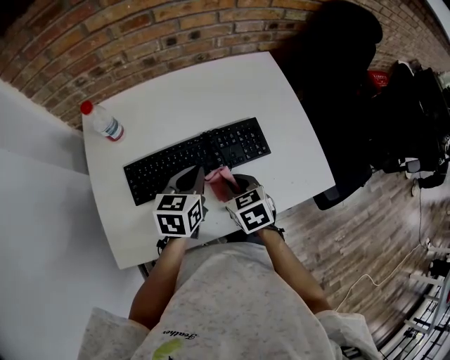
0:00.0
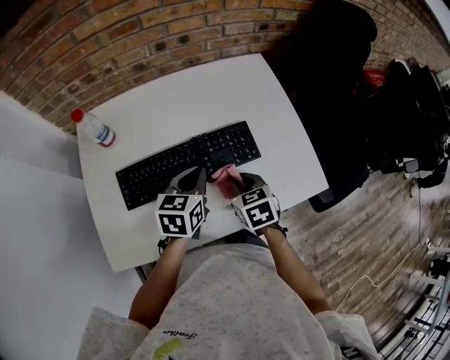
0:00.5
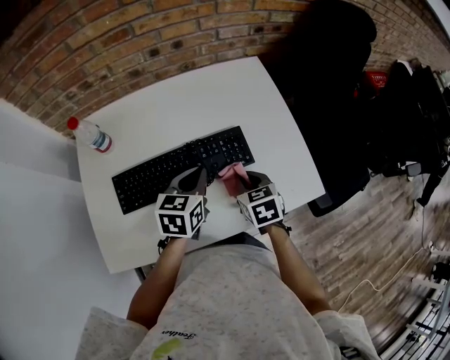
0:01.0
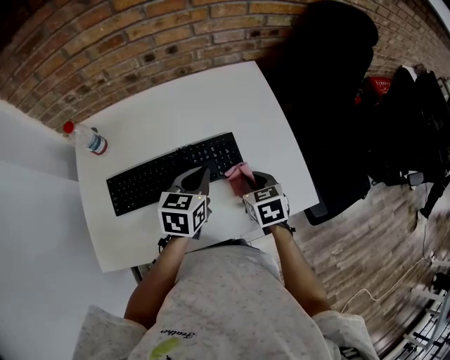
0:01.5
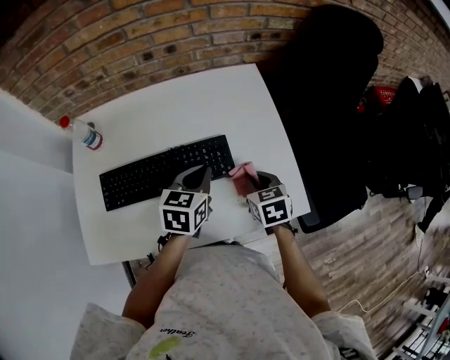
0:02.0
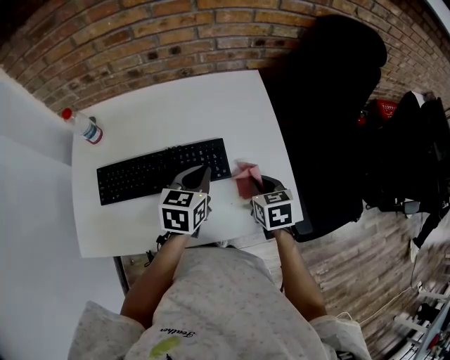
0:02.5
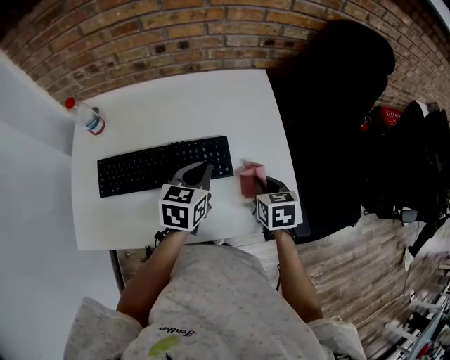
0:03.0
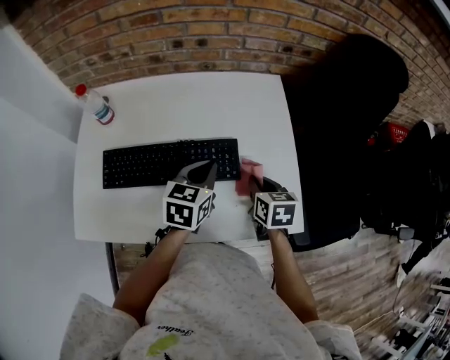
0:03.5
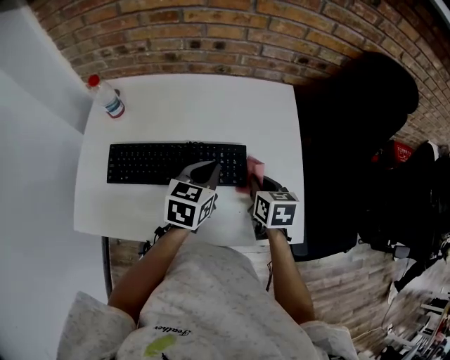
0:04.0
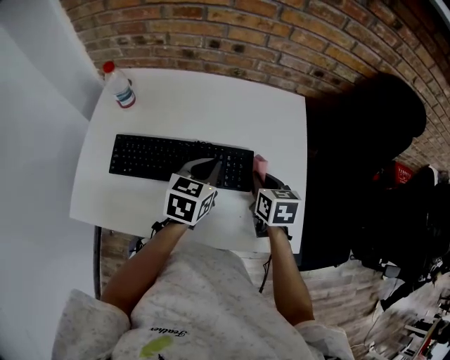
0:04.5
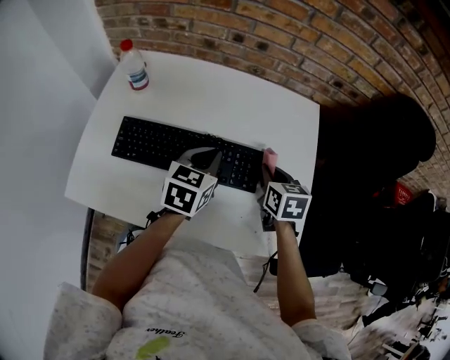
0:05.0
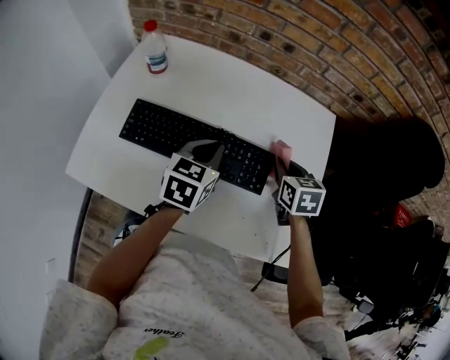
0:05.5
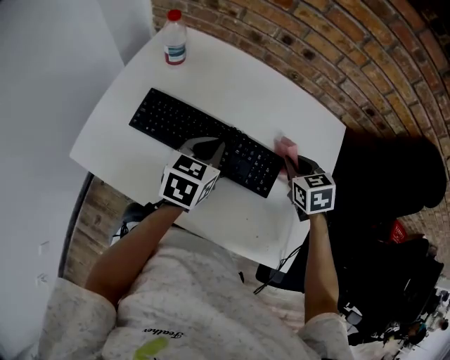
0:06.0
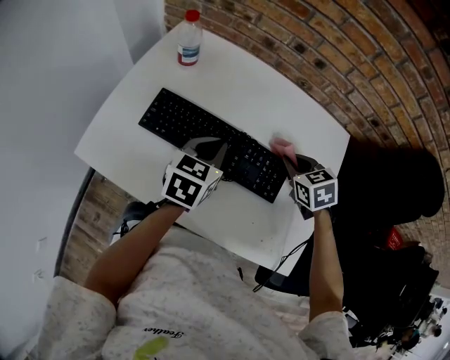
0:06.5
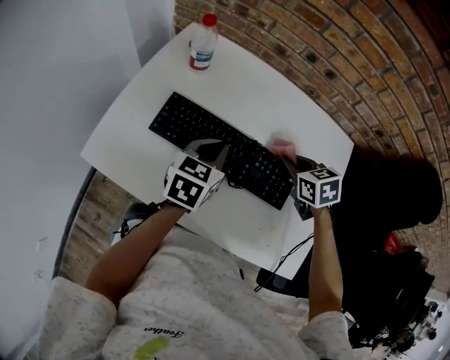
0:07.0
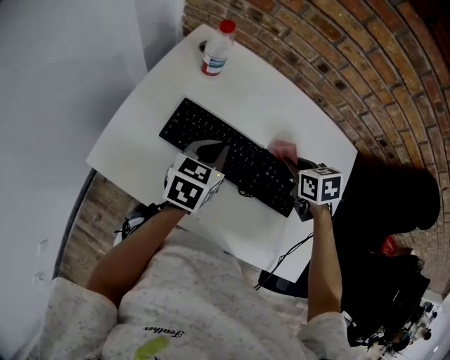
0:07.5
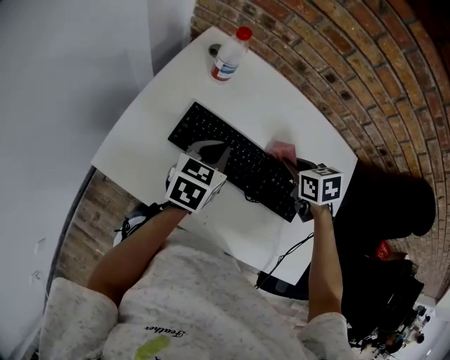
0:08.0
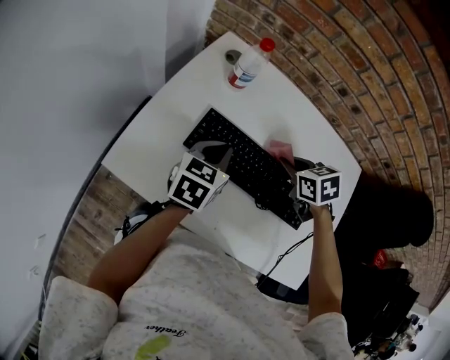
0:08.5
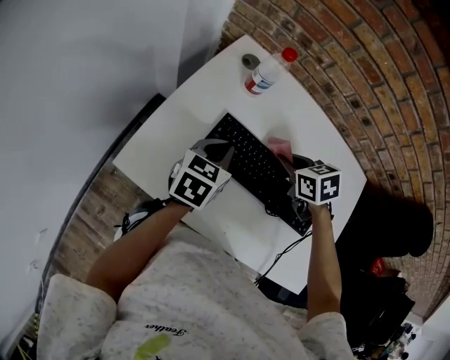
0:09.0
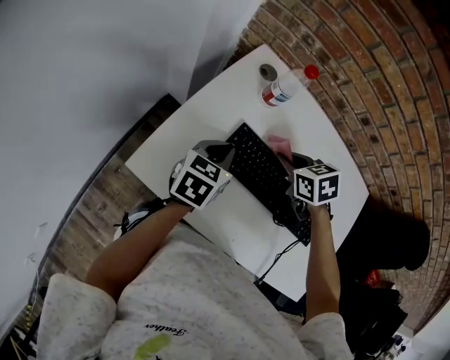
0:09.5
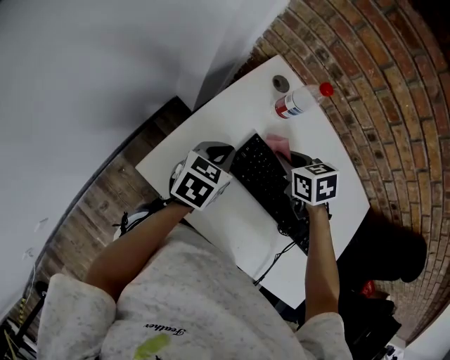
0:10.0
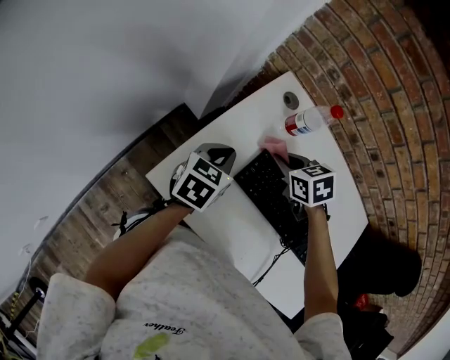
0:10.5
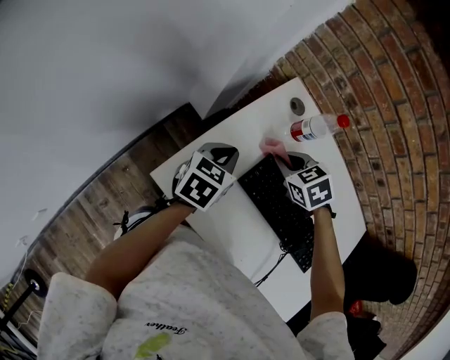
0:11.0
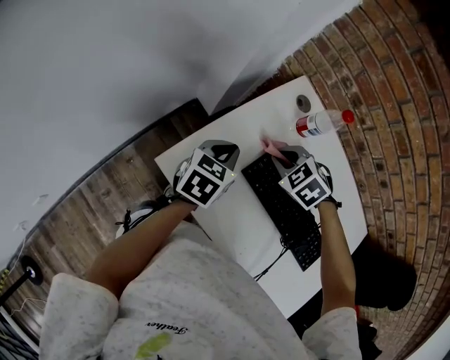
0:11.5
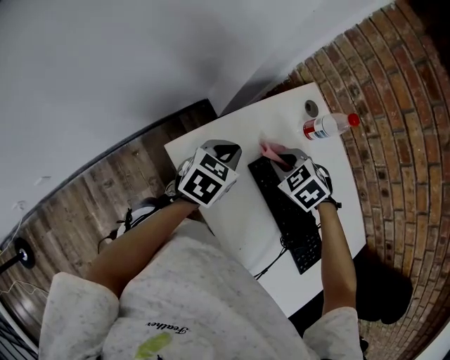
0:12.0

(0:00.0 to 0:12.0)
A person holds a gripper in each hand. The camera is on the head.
0:00.0 - 0:02.0: The grippers both shift to the right by approximately 15 cm.
0:02.0 - 0:04.0: The grippers stay close to where they were, moving slightly.
0:04.0 - 0:06.0: The right gripper heads forward, covering roughly 10 cm, and turns by about 40 degrees, while the left gripper shifts some 10 cm to the left.
0:06.0 - 0:08.0: The grippers both shift to the left by approximately 15 cm.
0:08.0 - 0:10.0: Both grippers move to the left, about 20 cm.
0:10.0 - 0:12.0: Both grippers move to the left, approximately 10 cm. The right gripper rotates around the line of its fingers by some 50 degrees, counterclockwise from behind.

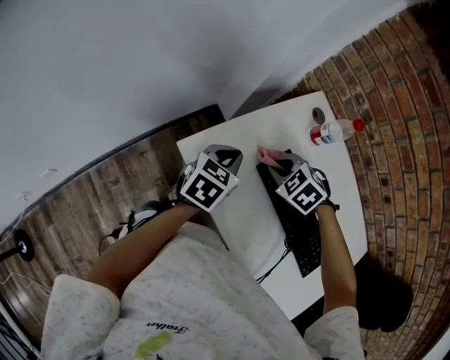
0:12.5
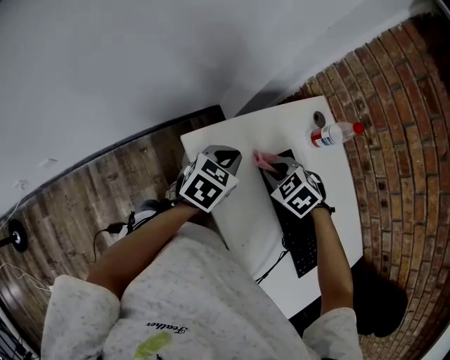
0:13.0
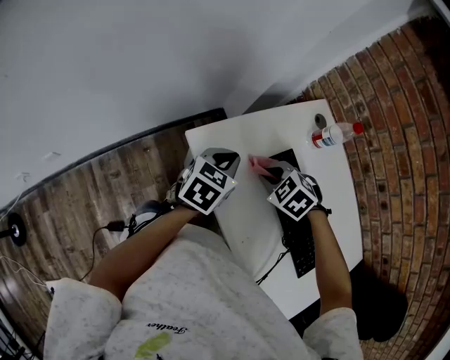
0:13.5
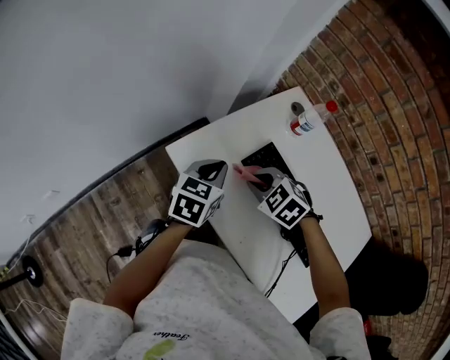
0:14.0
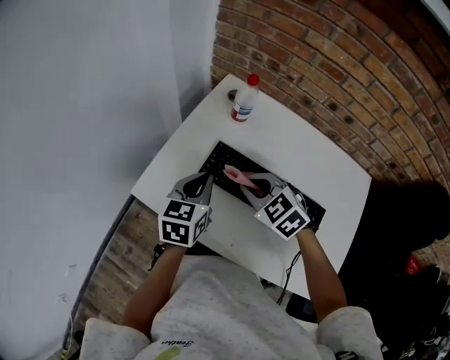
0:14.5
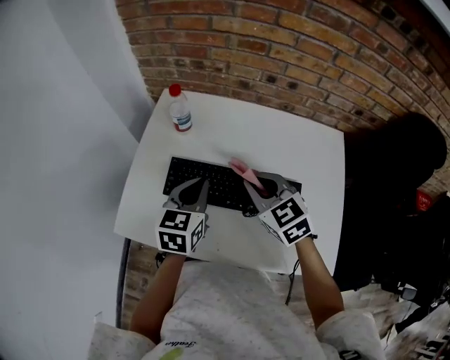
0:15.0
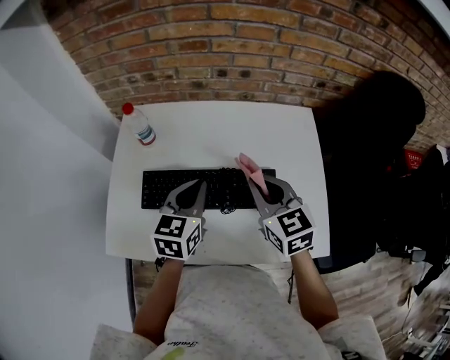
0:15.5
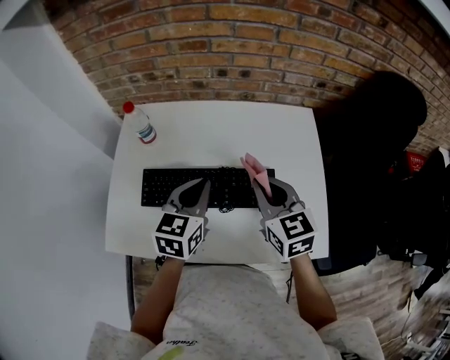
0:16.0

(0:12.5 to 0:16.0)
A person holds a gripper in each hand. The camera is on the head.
0:12.5 - 0:14.5: The left gripper goes approximately 10 cm to the right, upward and backward, while the right gripper heads backward, upward and to the right, covering approximately 15 cm, and turns by approximately 40 degrees.
0:14.5 - 0:16.0: The right gripper moves about 25 cm, and turns by about 60 degrees, while the left gripper ends up some 20 cm from where it was, and rotates some 30 degrees.

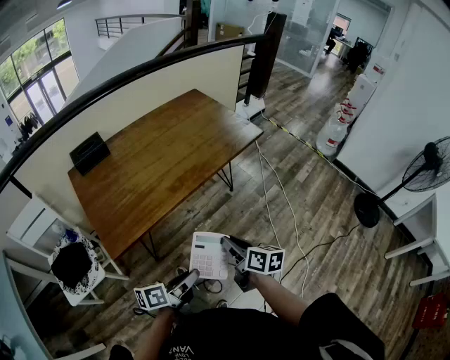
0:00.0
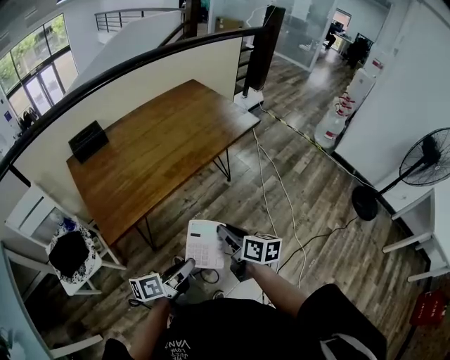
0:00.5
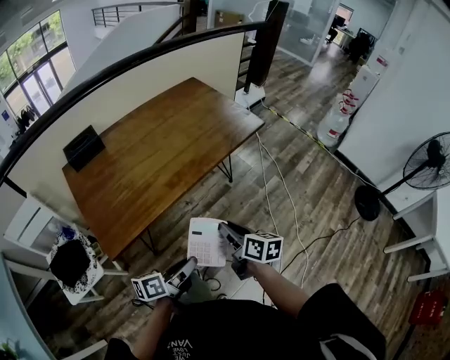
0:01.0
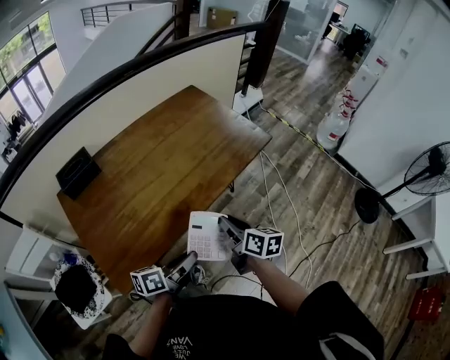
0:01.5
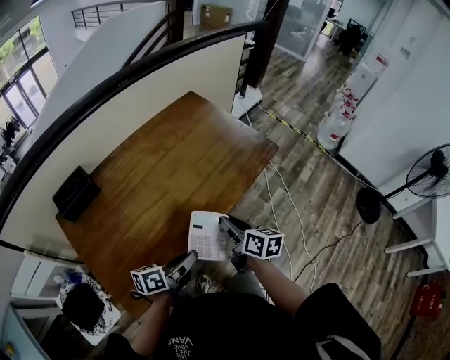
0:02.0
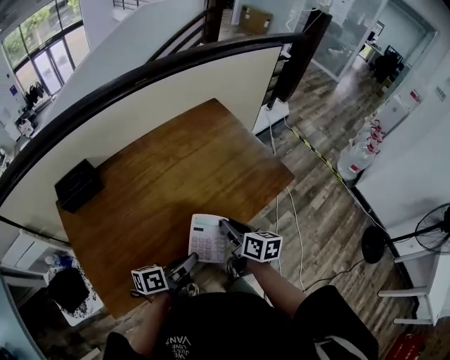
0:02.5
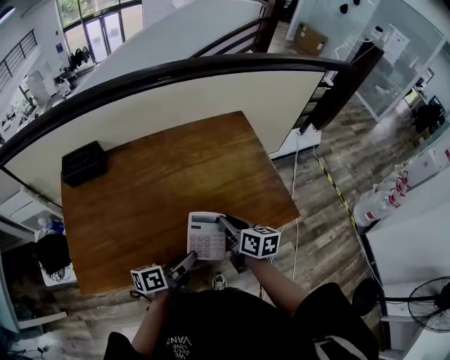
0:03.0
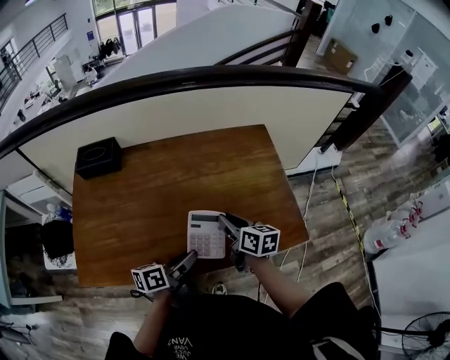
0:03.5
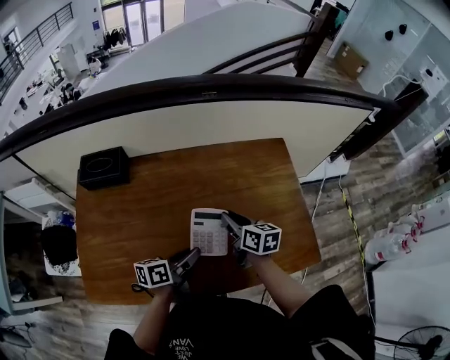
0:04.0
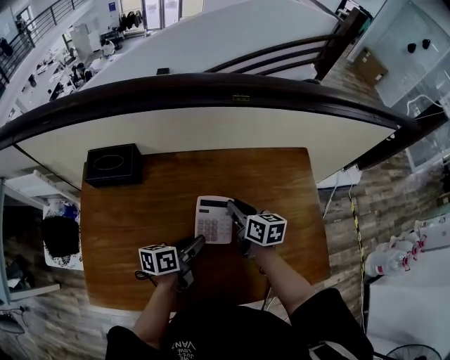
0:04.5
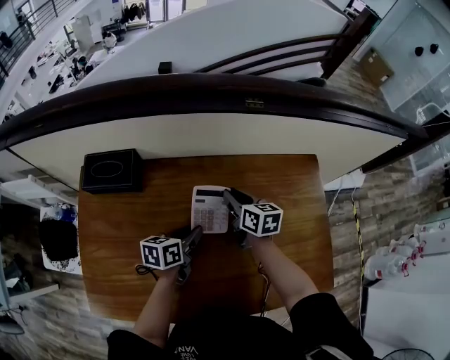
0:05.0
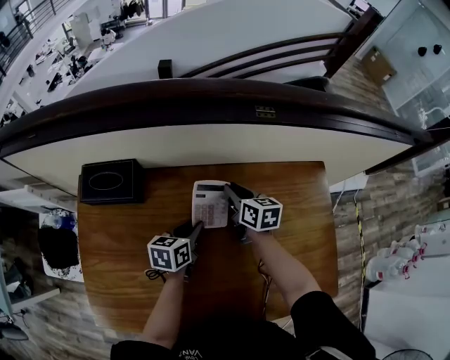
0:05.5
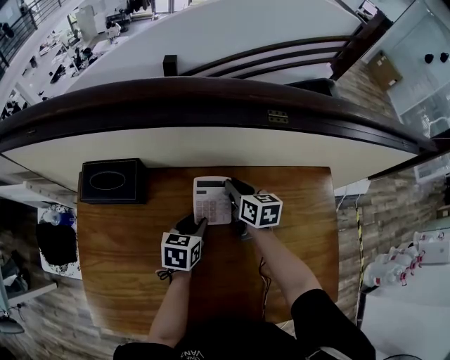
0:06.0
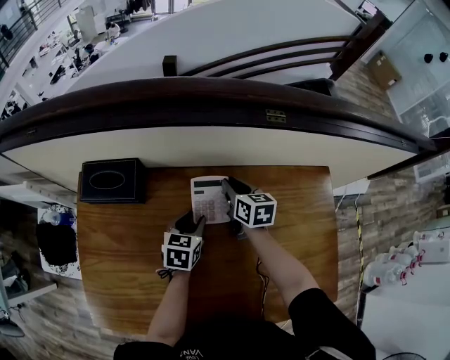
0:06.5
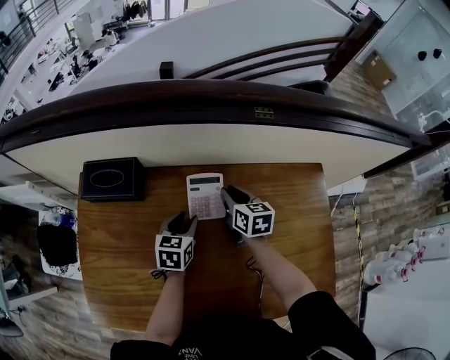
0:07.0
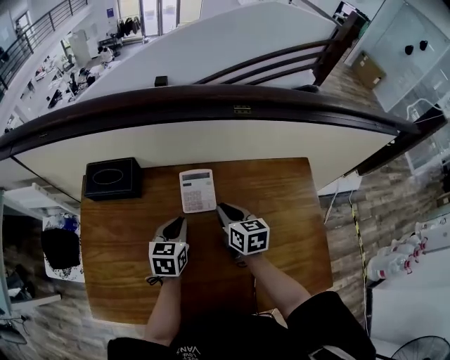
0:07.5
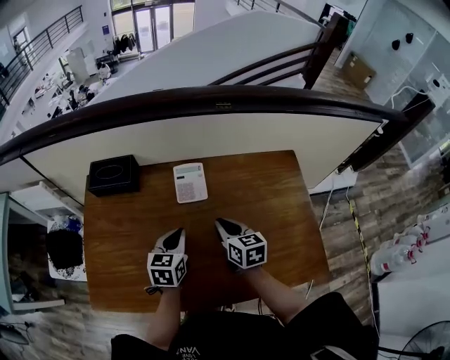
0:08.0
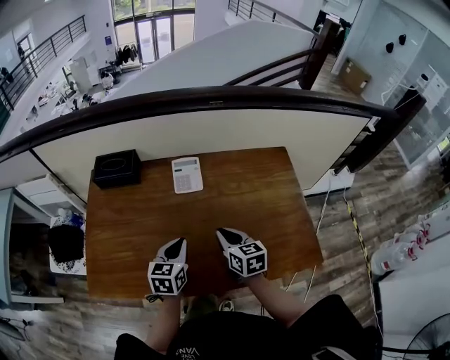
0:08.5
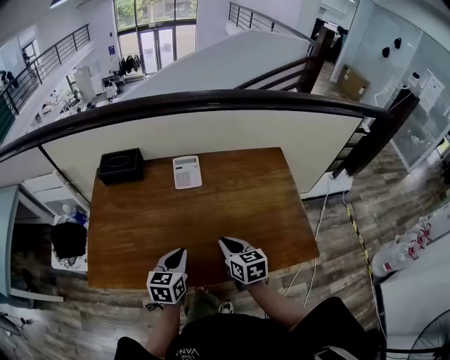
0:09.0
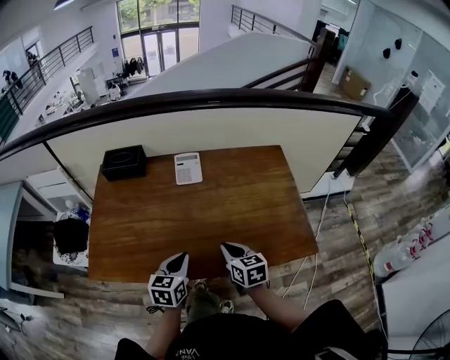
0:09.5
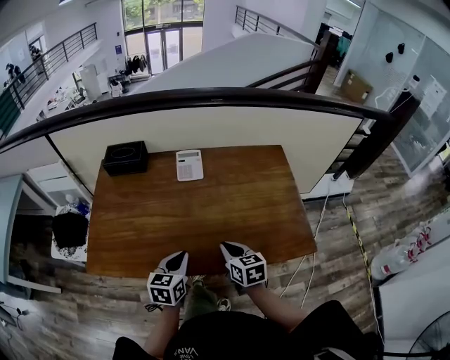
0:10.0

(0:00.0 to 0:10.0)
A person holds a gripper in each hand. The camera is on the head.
0:00.0 - 0:02.0: The grippers both shift forward by roughly 25 cm.
0:02.0 - 0:04.0: The right gripper shifts by about 30 cm, and turns by about 40 degrees, while the left gripper changes place by some 25 cm, and rotates roughly 40 degrees.
0:04.0 - 0:06.0: Both grippers travel together forward and to the left, about 25 cm. The left gripper changes its angle by roughly 40 degrees.
0:06.0 - 0:08.0: The right gripper shifts some 25 cm backward, while the left gripper is displaced backward and upward by some 15 cm, and closes.
0:08.0 - 0:10.0: Both grippers move backward, some 20 cm.

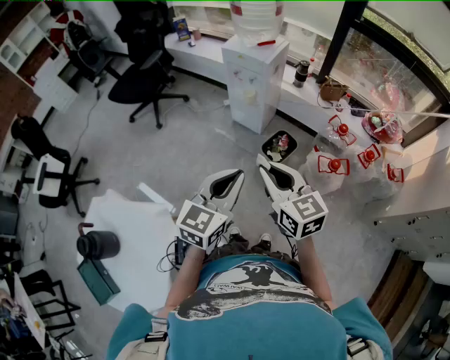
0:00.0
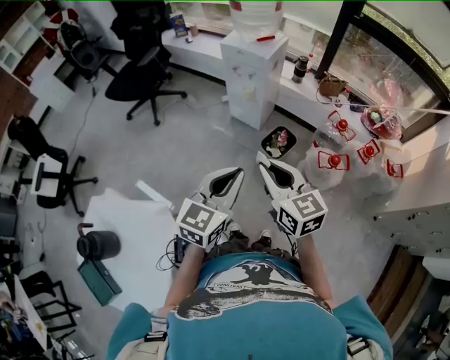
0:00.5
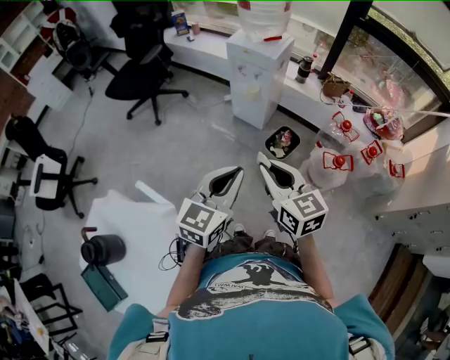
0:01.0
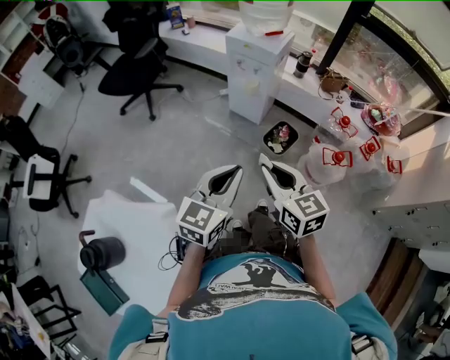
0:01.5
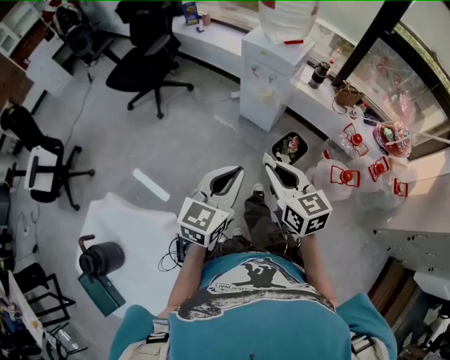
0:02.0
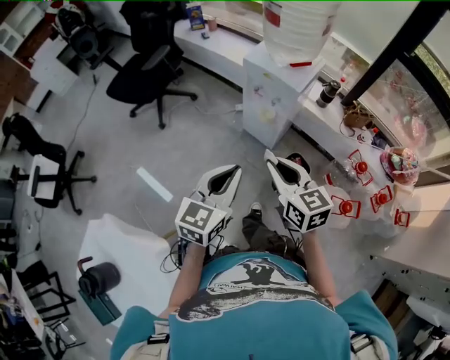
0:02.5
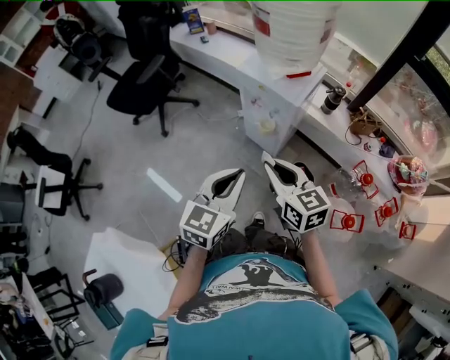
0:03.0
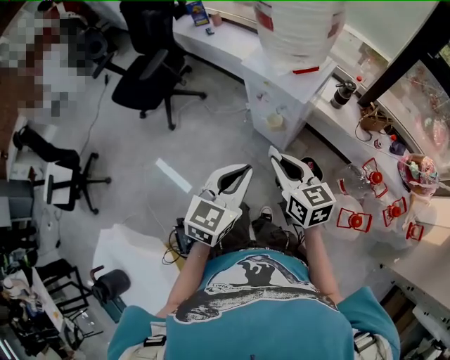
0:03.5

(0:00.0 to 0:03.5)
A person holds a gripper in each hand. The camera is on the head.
0:00.0 - 0:02.0: The left gripper moves to the left and forward, about 15 cm, while the right gripper travels forward and to the left by about 10 cm.
0:02.0 - 0:03.5: The two grippers go some 25 cm forward.
